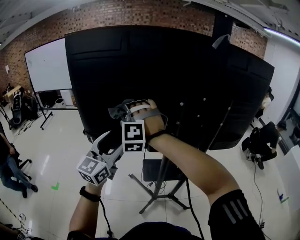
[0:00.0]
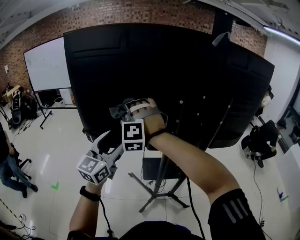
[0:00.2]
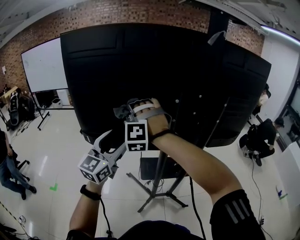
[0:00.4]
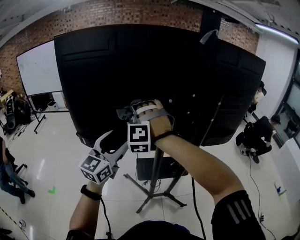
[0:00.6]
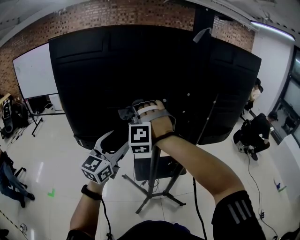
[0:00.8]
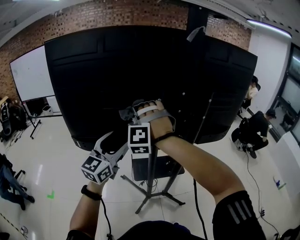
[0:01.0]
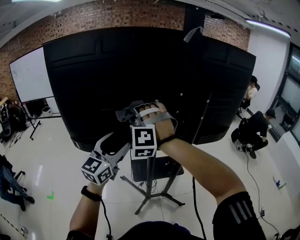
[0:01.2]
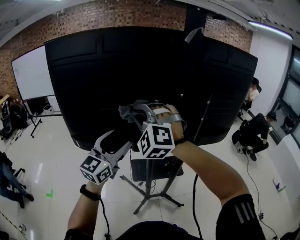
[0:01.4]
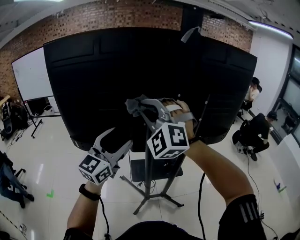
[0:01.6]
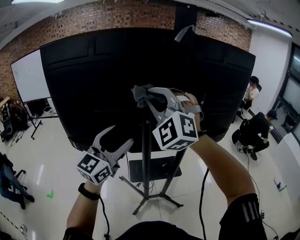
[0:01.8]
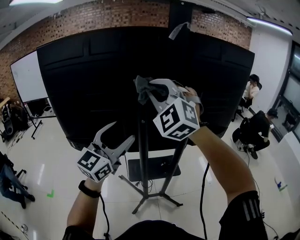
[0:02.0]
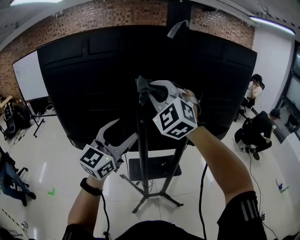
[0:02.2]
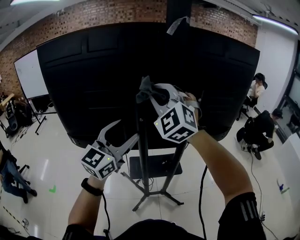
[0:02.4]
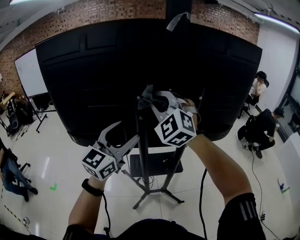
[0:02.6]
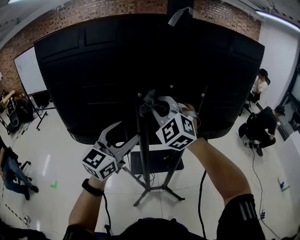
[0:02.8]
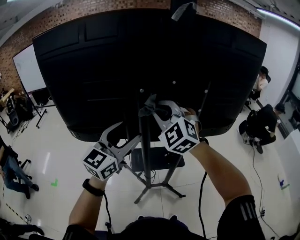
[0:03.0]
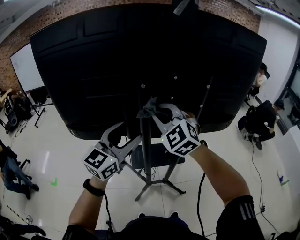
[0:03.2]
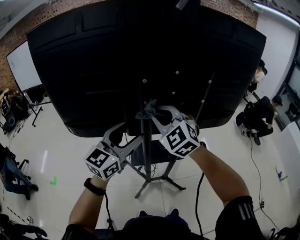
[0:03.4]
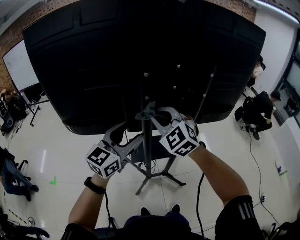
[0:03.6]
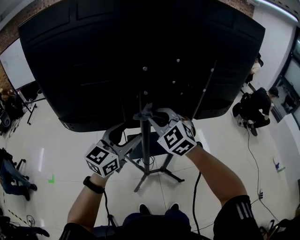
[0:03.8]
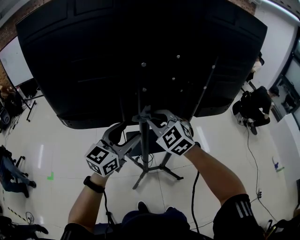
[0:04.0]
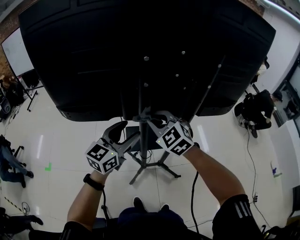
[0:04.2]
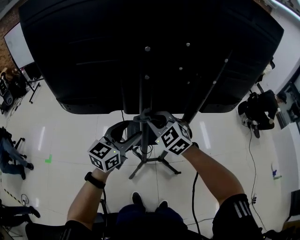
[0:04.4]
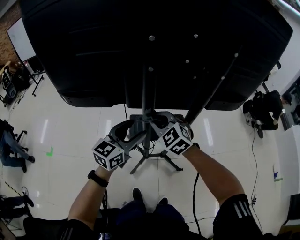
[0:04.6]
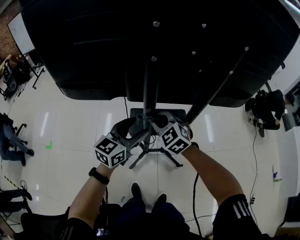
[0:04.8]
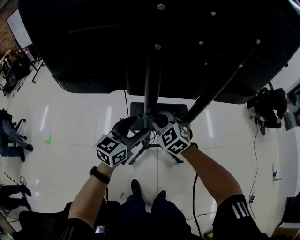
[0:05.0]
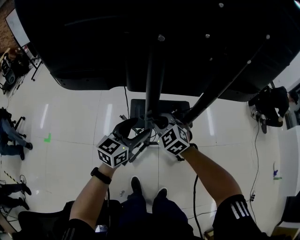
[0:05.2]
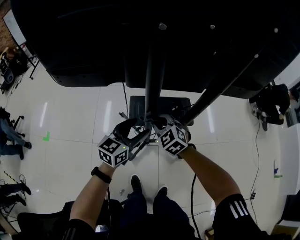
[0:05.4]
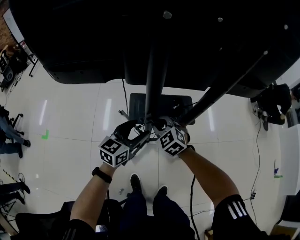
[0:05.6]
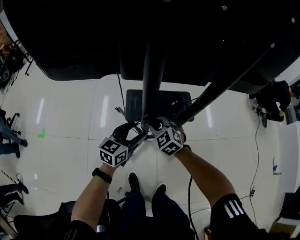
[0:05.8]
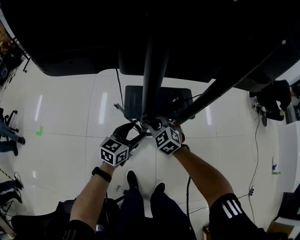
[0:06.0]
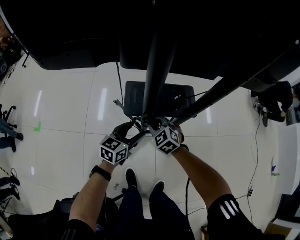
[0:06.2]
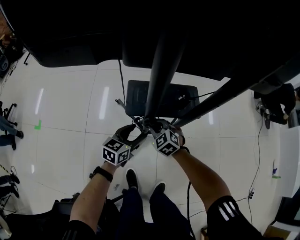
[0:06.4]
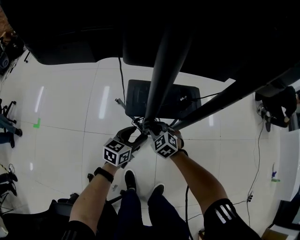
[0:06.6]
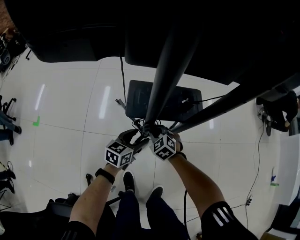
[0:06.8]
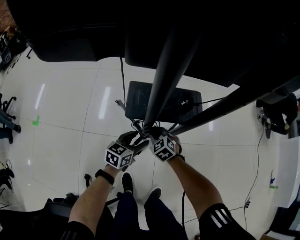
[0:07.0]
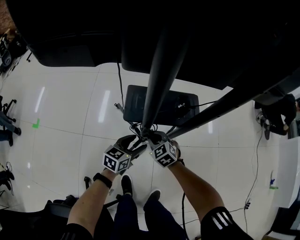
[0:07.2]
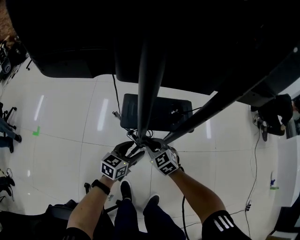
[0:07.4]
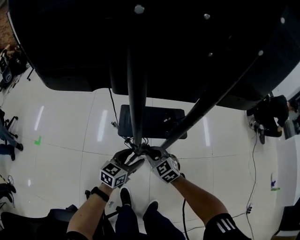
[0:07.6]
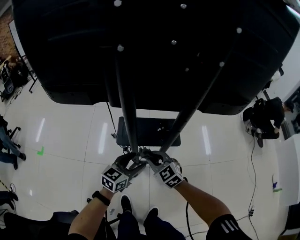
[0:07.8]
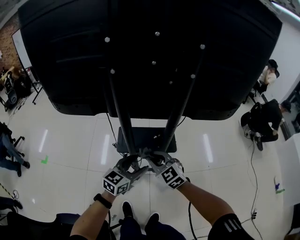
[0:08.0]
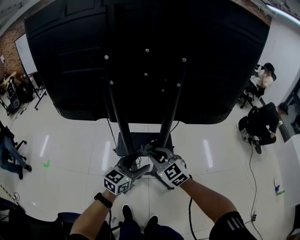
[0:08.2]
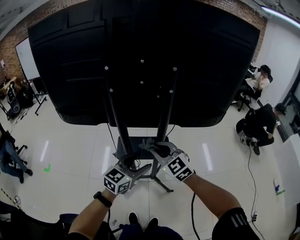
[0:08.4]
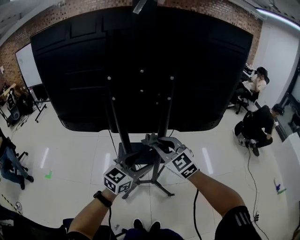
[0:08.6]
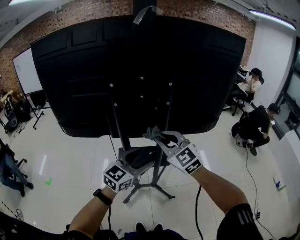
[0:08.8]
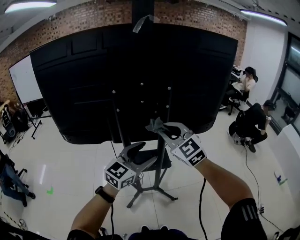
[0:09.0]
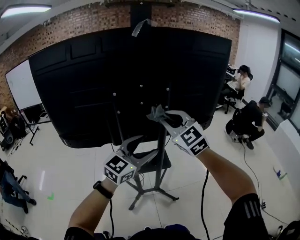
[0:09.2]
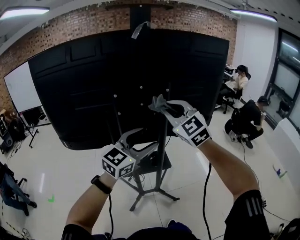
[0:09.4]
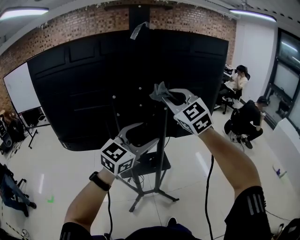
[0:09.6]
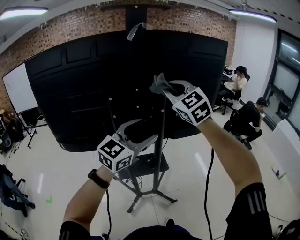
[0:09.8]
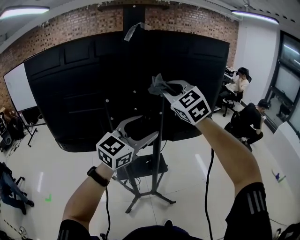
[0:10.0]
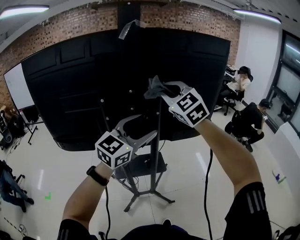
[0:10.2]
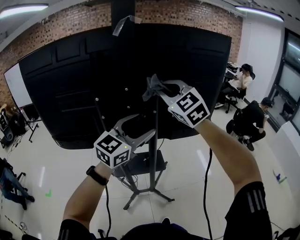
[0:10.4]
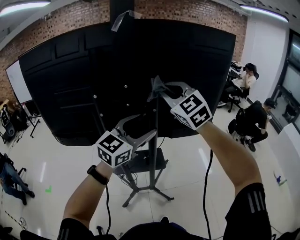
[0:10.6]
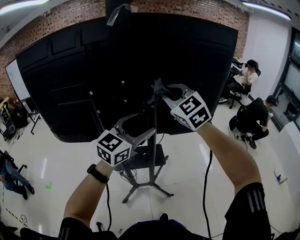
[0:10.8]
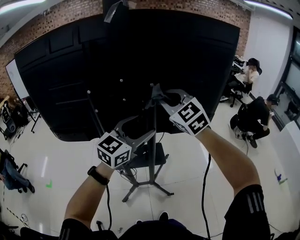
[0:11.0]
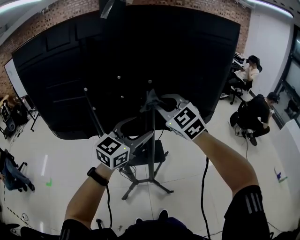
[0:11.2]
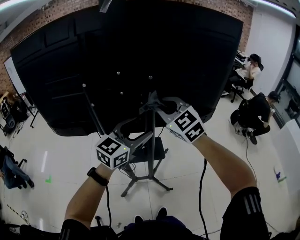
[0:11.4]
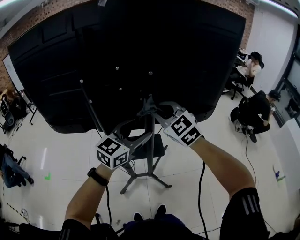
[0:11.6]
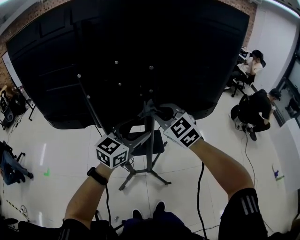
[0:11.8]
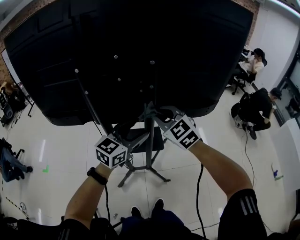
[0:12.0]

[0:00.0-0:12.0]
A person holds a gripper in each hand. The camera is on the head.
0:00.0 to 0:01.6: The right gripper goes roughly 20 cm to the right and upward, and rotates about 20 degrees. Meanwhile the left gripper is displaced to the right by about 10 cm.
0:01.6 to 0:03.0: The right gripper moves downward, to the right and forward, roughly 15 cm, and rotates some 20 degrees; the left gripper travels to the right by approximately 5 cm.
0:03.0 to 0:04.4: Both grippers move downward, approximately 20 cm. The right gripper changes its angle by some 30 degrees.
0:04.4 to 0:06.0: Both grippers travel together downward, about 35 cm.
0:06.0 to 0:07.6: The right gripper travels backward by some 5 cm, and moves approximately 15 cm downward and comes back; the left gripper travels downward and back again, some 15 cm each way.
0:07.6 to 0:09.0: The two grippers go some 50 cm upward. The left gripper swivels approximately 40 degrees. The right gripper rotates roughly 30 degrees.
0:09.0 to 0:10.4: The two grippers go about 15 cm upward and forward.
0:10.4 to 0:12.0: Both grippers travel together downward, approximately 20 cm.

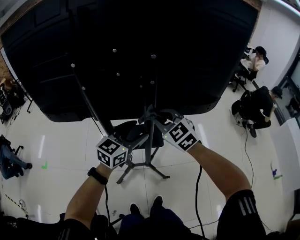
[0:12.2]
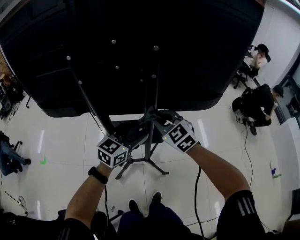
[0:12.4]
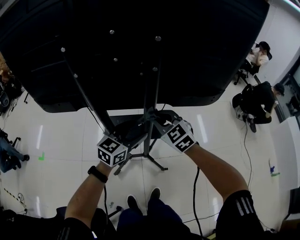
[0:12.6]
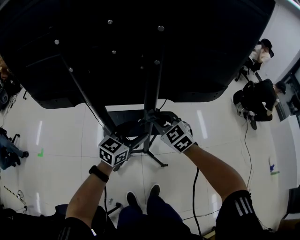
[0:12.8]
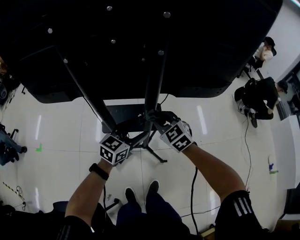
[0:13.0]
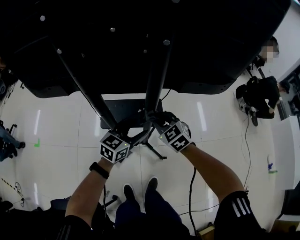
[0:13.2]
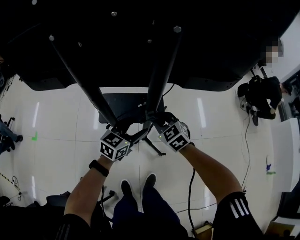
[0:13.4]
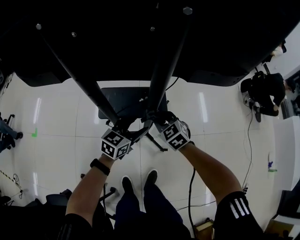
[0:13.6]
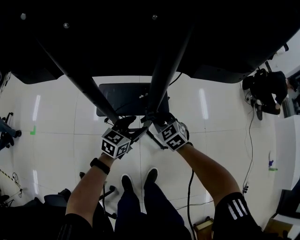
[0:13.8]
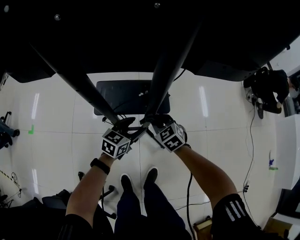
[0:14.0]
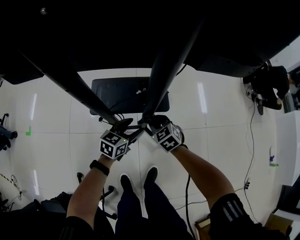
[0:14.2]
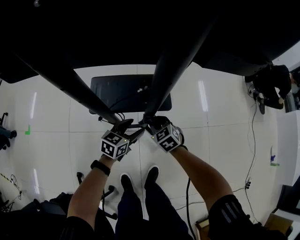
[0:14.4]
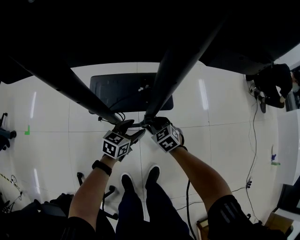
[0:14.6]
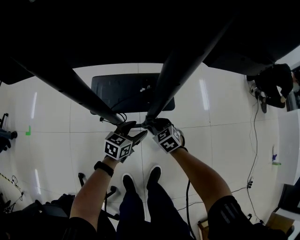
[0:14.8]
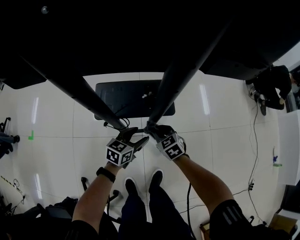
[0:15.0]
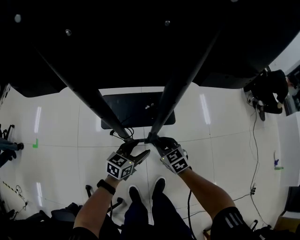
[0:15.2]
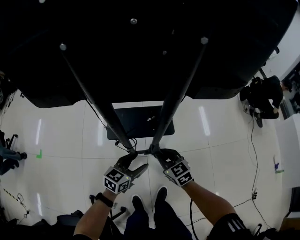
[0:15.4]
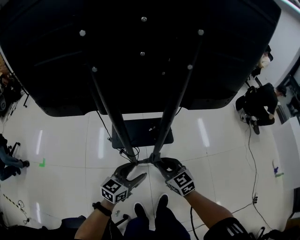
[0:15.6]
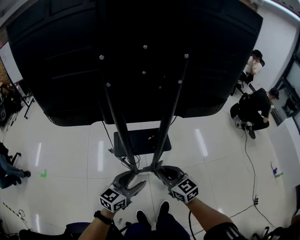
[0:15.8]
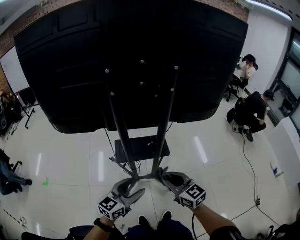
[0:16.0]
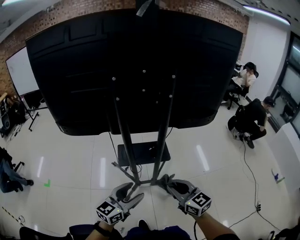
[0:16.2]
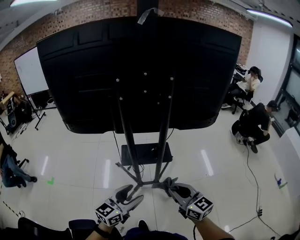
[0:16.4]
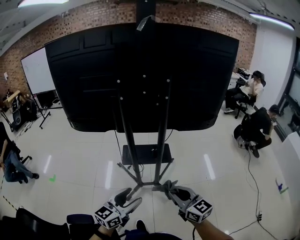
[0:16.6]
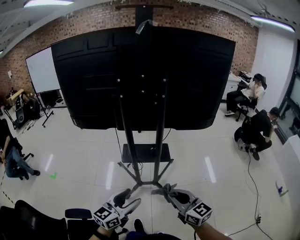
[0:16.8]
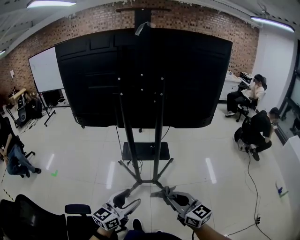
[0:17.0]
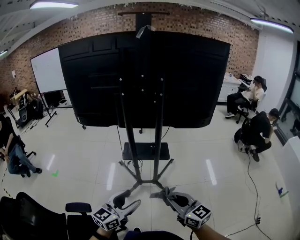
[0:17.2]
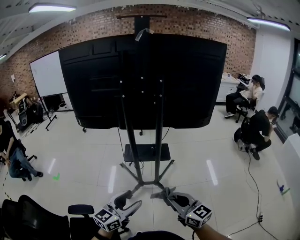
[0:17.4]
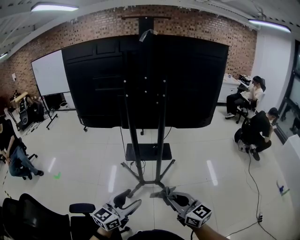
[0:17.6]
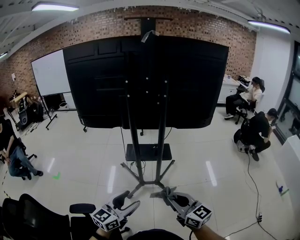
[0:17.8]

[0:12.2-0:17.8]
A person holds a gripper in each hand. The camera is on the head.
0:12.2 to 0:13.6: The grippers both shift downward by some 30 cm. The right gripper rotates approximately 20 degrees.
0:13.6 to 0:15.0: The grippers both shift downward by roughly 15 cm.
0:15.0 to 0:16.4: The two grippers go roughly 50 cm upward and backward. The left gripper rotates approximately 30 degrees, while the right gripper points its fingers roughly 40 degrees further upward.
0:16.4 to 0:17.8: The two grippers go some 15 cm backward.

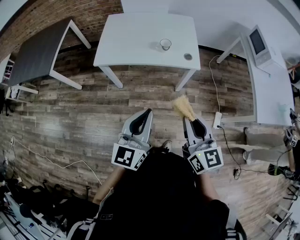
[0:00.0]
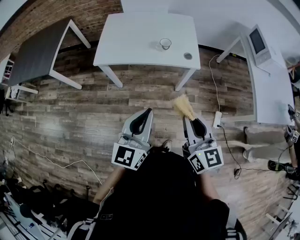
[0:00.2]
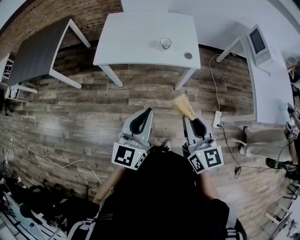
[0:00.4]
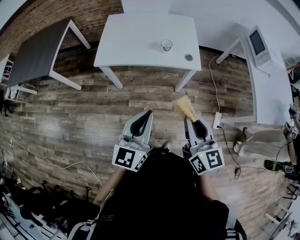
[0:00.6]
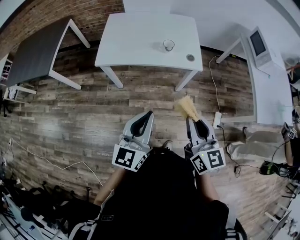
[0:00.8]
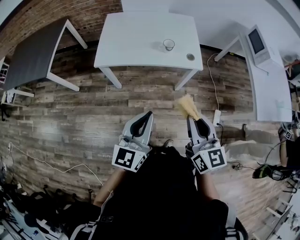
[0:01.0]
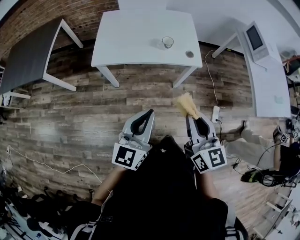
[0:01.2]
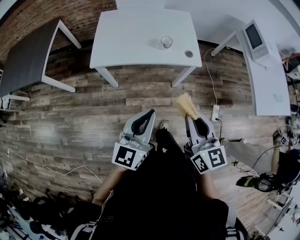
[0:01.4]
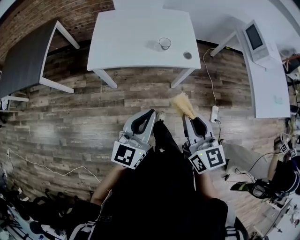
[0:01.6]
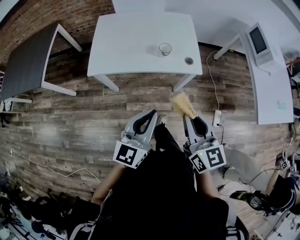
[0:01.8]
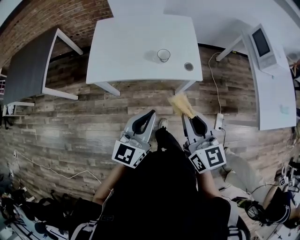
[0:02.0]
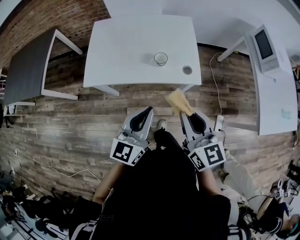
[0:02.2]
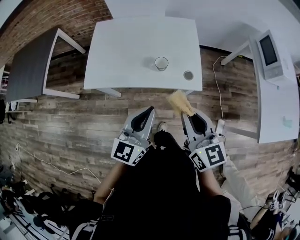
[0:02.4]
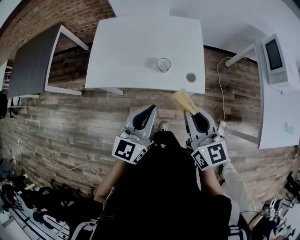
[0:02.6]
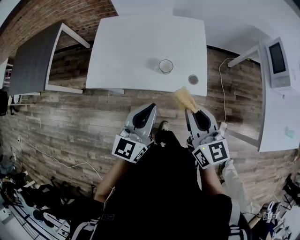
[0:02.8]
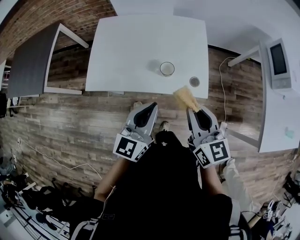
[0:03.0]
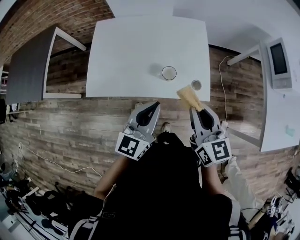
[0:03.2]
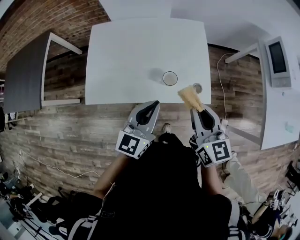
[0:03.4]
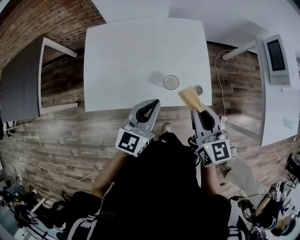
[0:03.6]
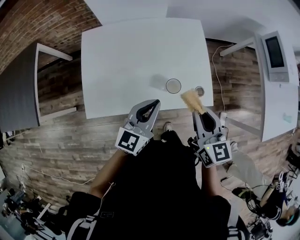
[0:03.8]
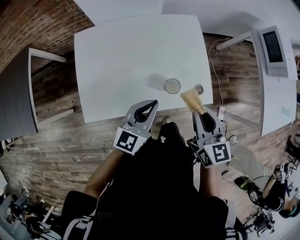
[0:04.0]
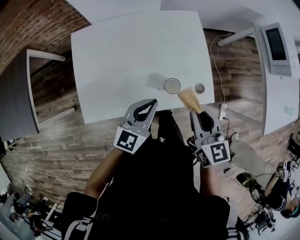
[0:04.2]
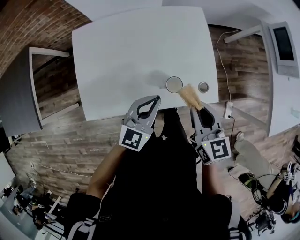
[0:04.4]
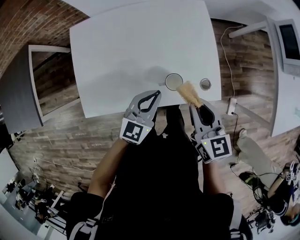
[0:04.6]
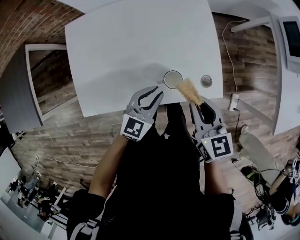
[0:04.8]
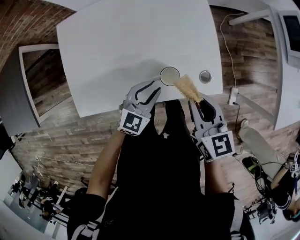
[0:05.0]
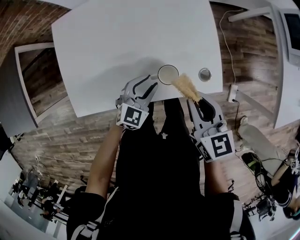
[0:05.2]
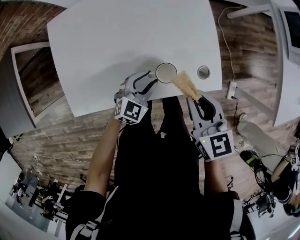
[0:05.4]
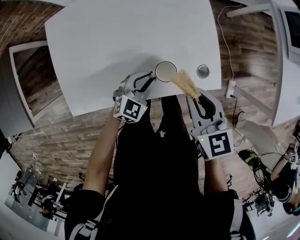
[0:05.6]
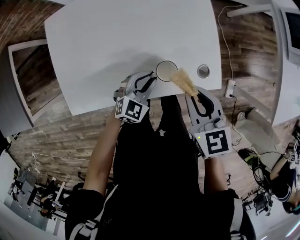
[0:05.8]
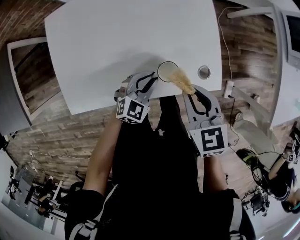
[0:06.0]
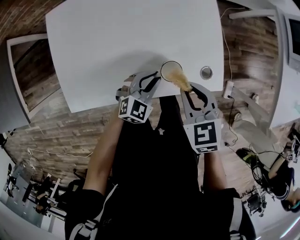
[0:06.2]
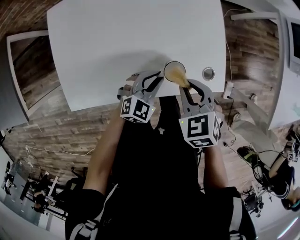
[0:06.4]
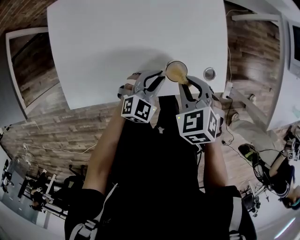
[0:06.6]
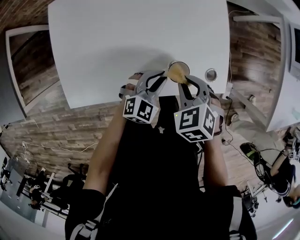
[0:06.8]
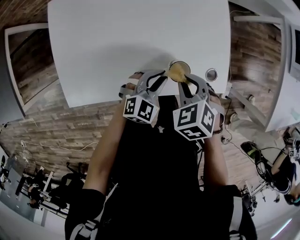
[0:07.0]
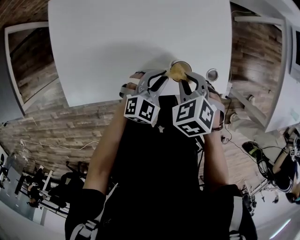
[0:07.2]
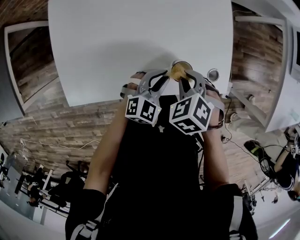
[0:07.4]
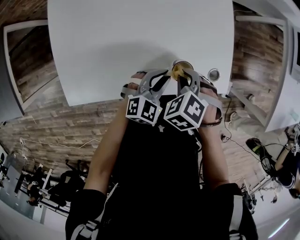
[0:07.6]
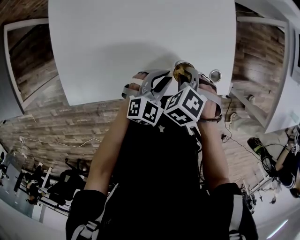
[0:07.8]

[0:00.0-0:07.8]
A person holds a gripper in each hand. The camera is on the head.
0:00.0 to 0:01.6: The right gripper moves some 5 cm, while the left gripper ends up approximately 5 cm from where it was.
0:01.6 to 0:03.2: Both grippers move forward, approximately 25 cm.
0:03.2 to 0:04.6: The left gripper heads downward and forward, covering about 15 cm, and swivels some 20 degrees. Meanwhile the right gripper goes roughly 10 cm forward and downward.
0:04.6 to 0:06.2: The left gripper is displaced downward by approximately 15 cm, and turns by about 20 degrees; the right gripper is displaced downward by about 10 cm, and changes its angle by roughly 30 degrees.
0:06.2 to 0:07.8: The right gripper shifts roughly 10 cm downward, and changes its angle by roughly 40 degrees.
